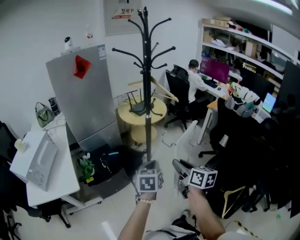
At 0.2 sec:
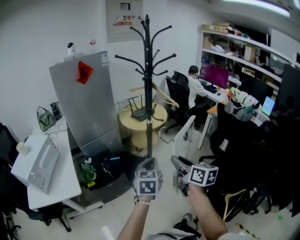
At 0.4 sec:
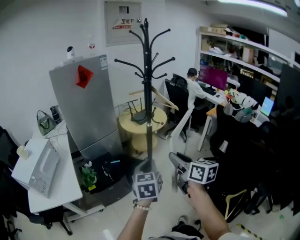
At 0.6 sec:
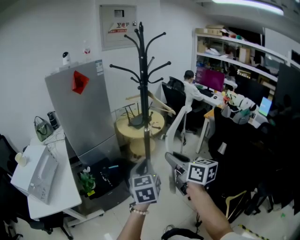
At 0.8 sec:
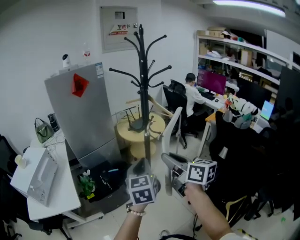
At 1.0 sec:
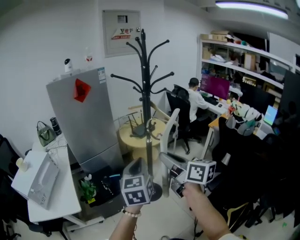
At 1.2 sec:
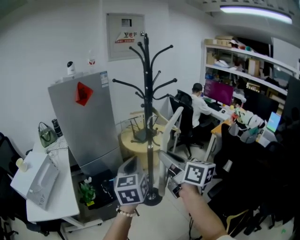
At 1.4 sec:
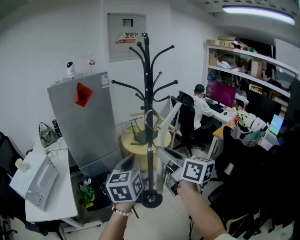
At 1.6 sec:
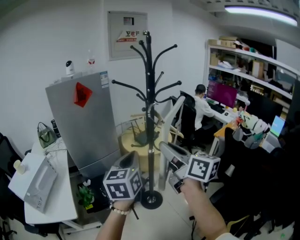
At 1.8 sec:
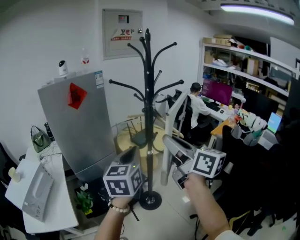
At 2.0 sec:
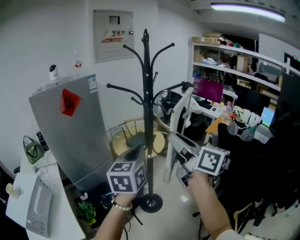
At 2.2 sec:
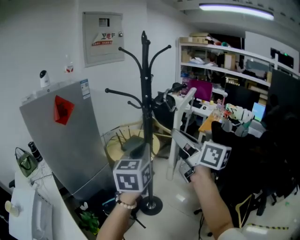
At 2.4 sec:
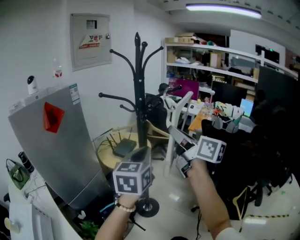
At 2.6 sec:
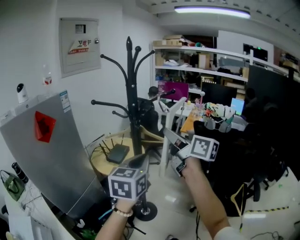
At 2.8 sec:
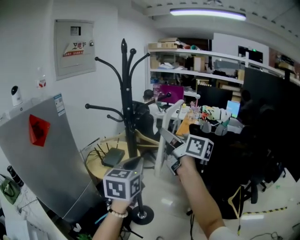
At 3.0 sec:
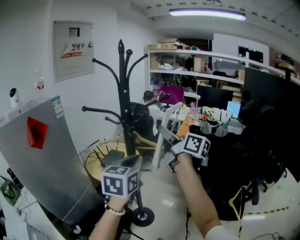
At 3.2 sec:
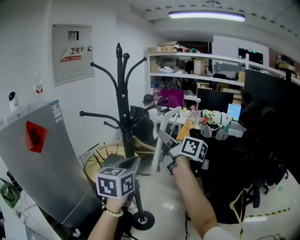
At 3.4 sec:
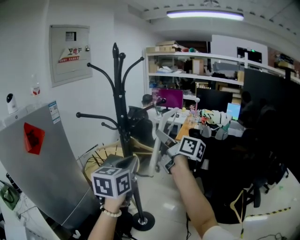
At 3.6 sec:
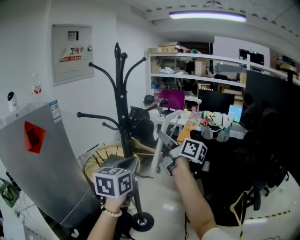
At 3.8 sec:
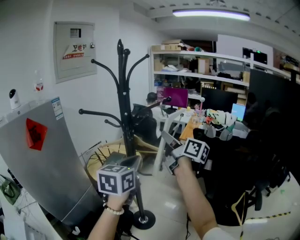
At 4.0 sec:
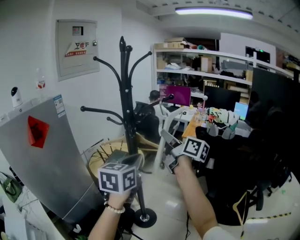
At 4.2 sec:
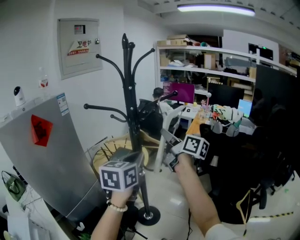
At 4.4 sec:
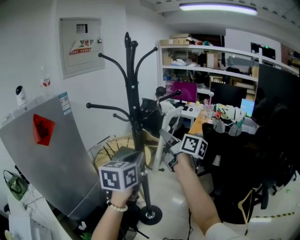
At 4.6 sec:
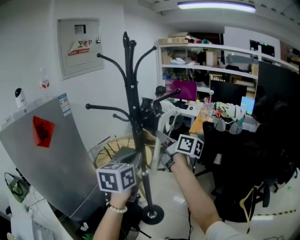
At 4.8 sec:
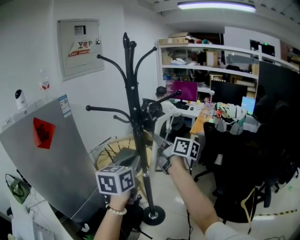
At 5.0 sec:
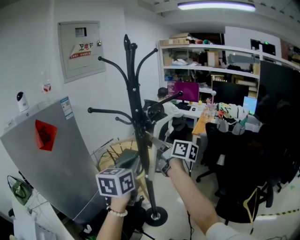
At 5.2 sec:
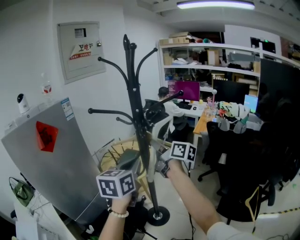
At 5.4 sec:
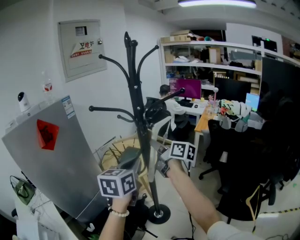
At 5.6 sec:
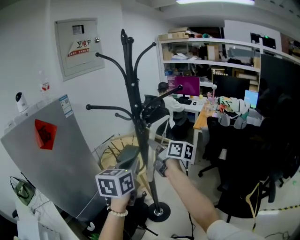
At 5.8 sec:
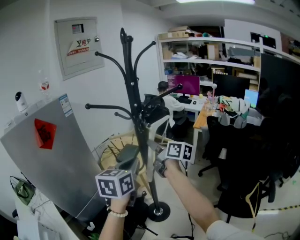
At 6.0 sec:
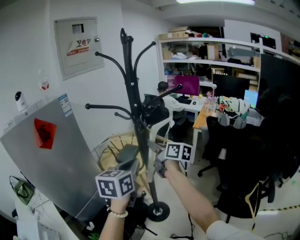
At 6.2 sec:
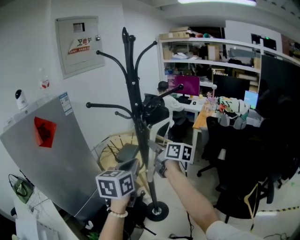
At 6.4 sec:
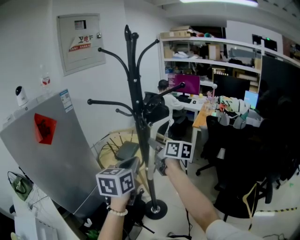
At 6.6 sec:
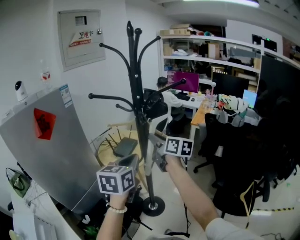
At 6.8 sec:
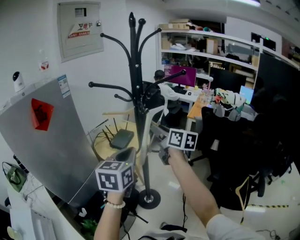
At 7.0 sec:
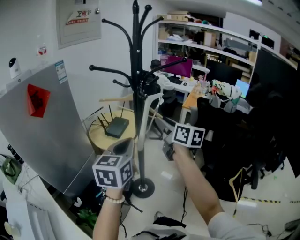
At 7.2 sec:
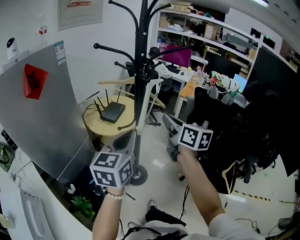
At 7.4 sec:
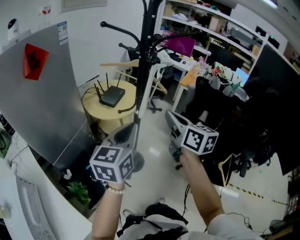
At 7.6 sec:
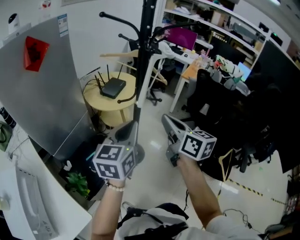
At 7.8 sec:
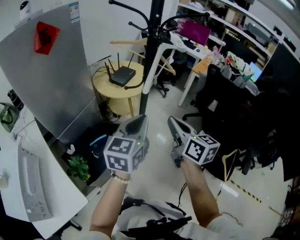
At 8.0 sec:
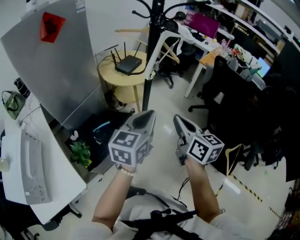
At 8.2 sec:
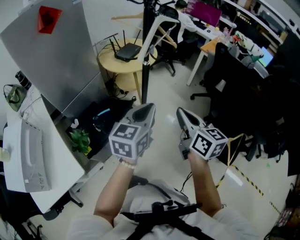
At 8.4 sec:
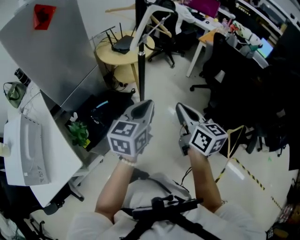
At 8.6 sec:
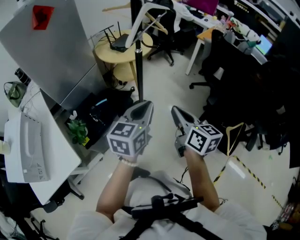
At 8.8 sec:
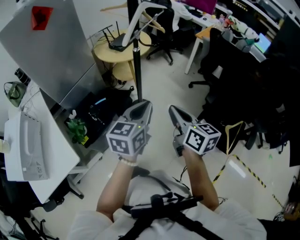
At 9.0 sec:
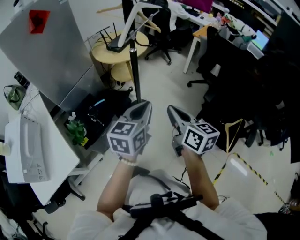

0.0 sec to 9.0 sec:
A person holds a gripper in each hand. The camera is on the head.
0.0 sec to 1.6 sec: Both grippers move upward and forward, some 30 cm. The right gripper rotates some 30 degrees. Meanwhile the left gripper rotates about 30 degrees.
1.6 sec to 3.0 sec: The right gripper moves approximately 20 cm, and swivels approximately 30 degrees, while the left gripper changes place by about 15 cm, and rotates approximately 40 degrees.
3.0 sec to 4.4 sec: The right gripper travels forward and downward by approximately 10 cm.
4.4 sec to 6.0 sec: The right gripper moves downward and to the left, about 10 cm. The left gripper changes place by approximately 5 cm.
6.0 sec to 7.6 sec: The right gripper goes approximately 25 cm backward, rotates about 20 degrees, and closes its fingers; the left gripper shifts approximately 15 cm backward and downward.
7.6 sec to 9.0 sec: The right gripper travels backward, to the right and downward by about 25 cm; the left gripper travels to the right, backward and downward by roughly 25 cm.

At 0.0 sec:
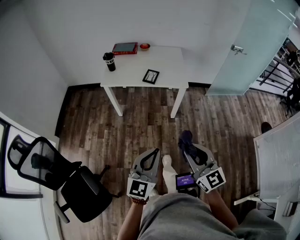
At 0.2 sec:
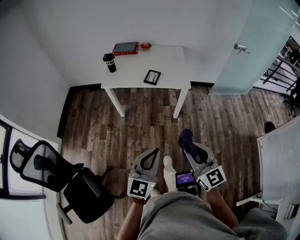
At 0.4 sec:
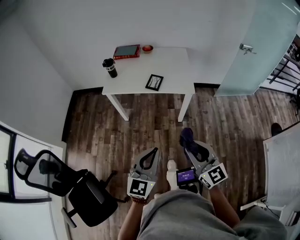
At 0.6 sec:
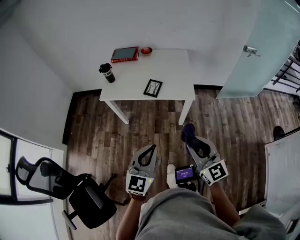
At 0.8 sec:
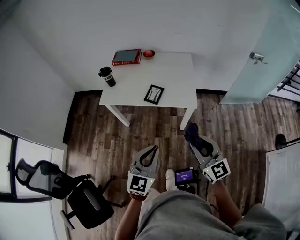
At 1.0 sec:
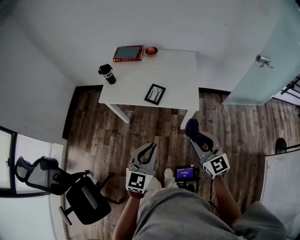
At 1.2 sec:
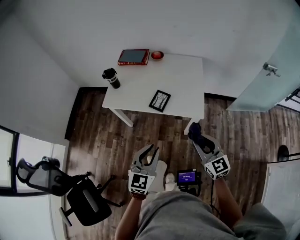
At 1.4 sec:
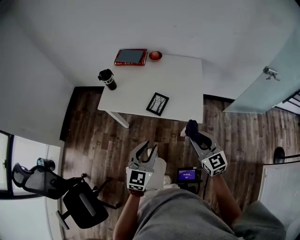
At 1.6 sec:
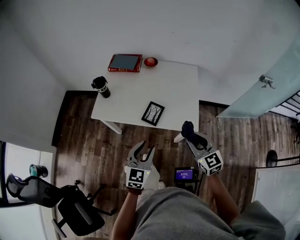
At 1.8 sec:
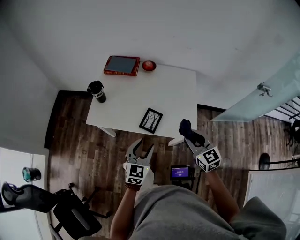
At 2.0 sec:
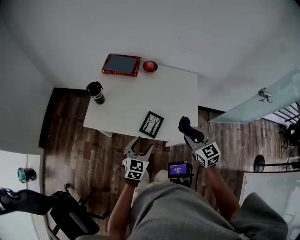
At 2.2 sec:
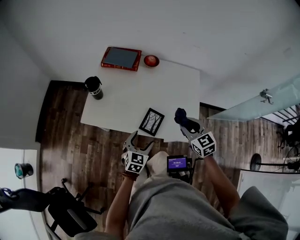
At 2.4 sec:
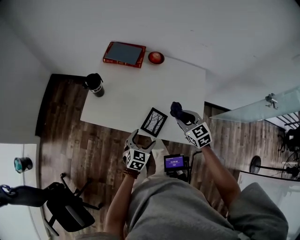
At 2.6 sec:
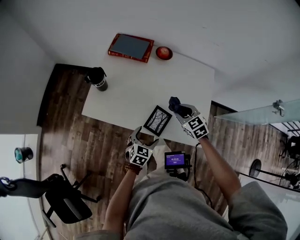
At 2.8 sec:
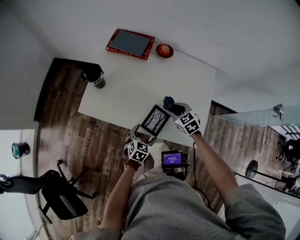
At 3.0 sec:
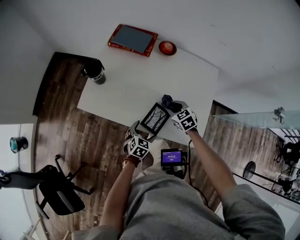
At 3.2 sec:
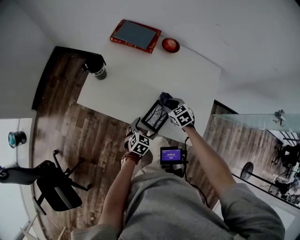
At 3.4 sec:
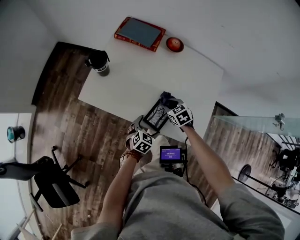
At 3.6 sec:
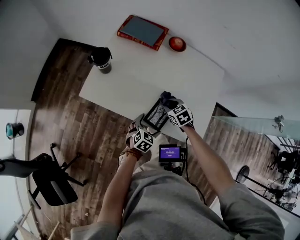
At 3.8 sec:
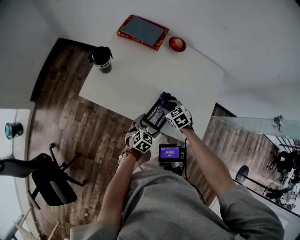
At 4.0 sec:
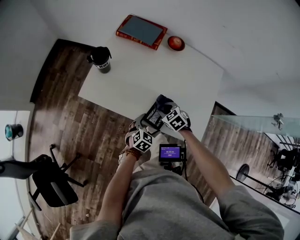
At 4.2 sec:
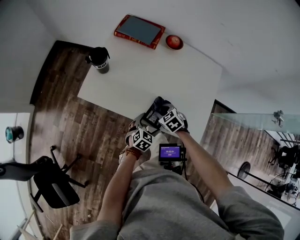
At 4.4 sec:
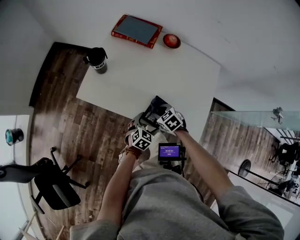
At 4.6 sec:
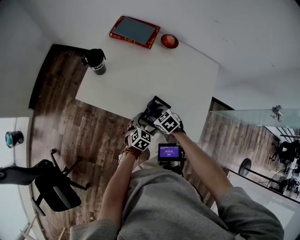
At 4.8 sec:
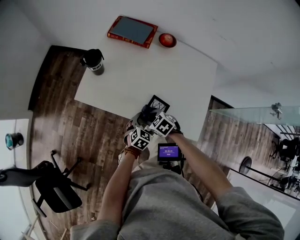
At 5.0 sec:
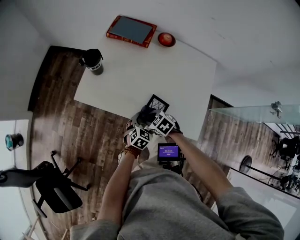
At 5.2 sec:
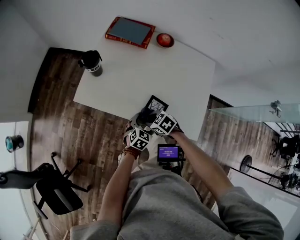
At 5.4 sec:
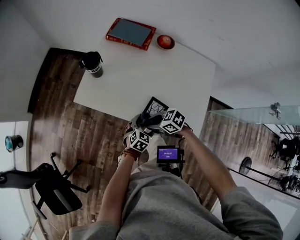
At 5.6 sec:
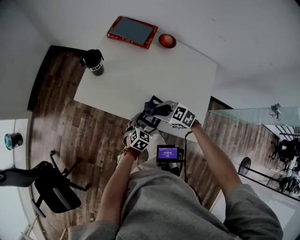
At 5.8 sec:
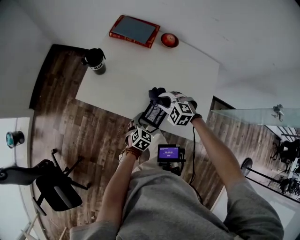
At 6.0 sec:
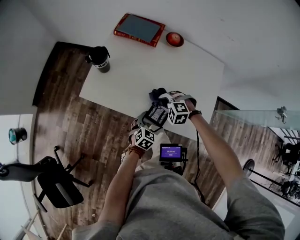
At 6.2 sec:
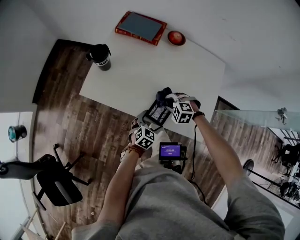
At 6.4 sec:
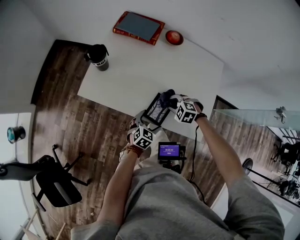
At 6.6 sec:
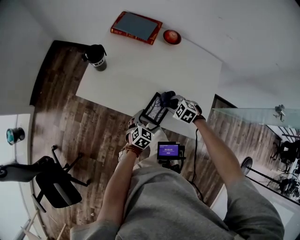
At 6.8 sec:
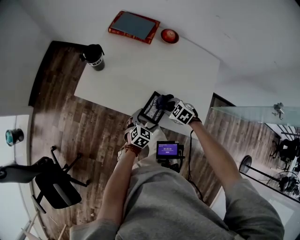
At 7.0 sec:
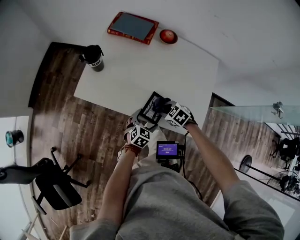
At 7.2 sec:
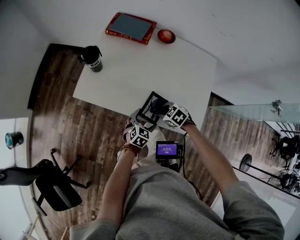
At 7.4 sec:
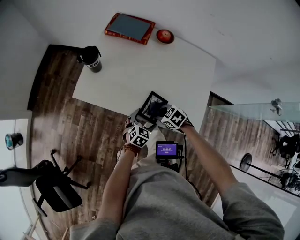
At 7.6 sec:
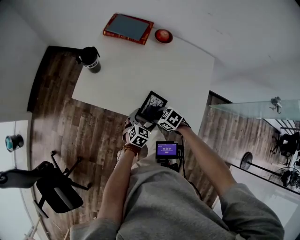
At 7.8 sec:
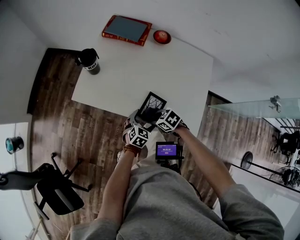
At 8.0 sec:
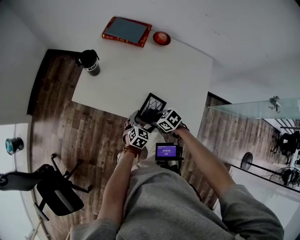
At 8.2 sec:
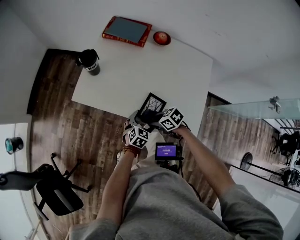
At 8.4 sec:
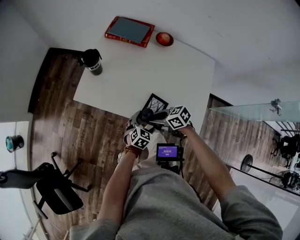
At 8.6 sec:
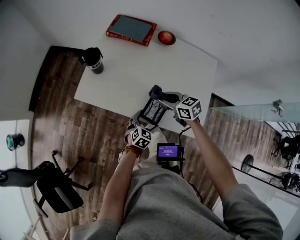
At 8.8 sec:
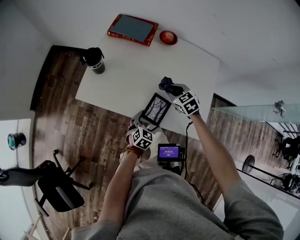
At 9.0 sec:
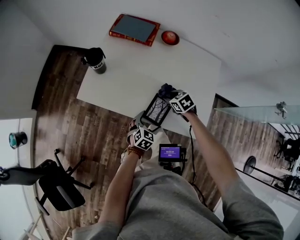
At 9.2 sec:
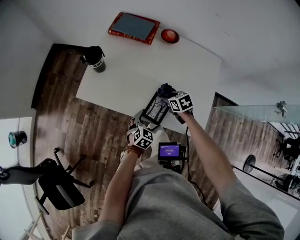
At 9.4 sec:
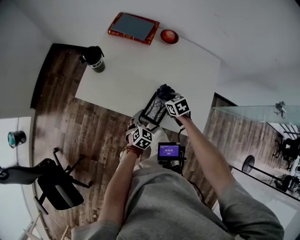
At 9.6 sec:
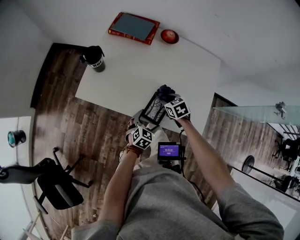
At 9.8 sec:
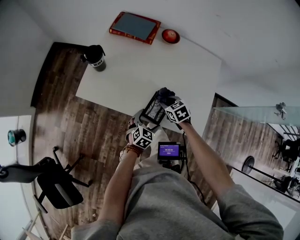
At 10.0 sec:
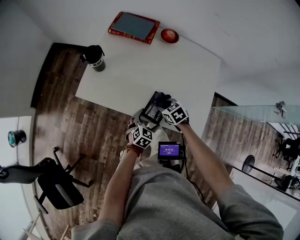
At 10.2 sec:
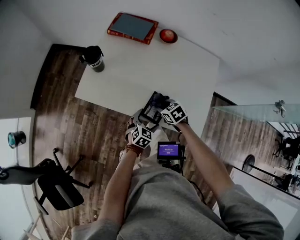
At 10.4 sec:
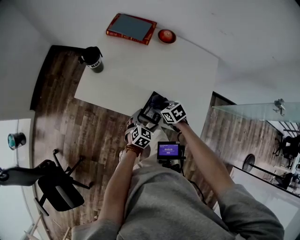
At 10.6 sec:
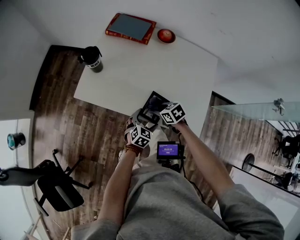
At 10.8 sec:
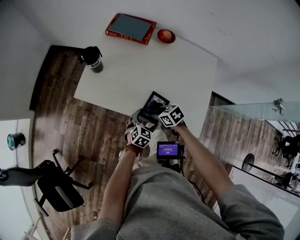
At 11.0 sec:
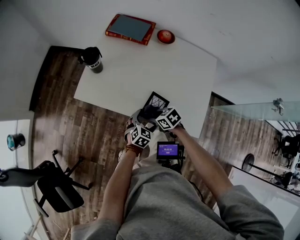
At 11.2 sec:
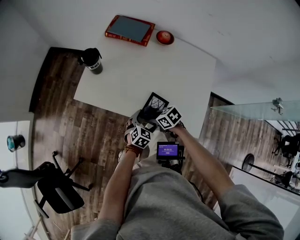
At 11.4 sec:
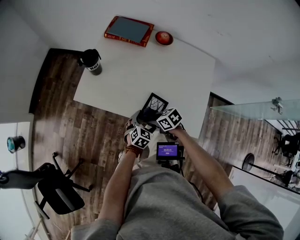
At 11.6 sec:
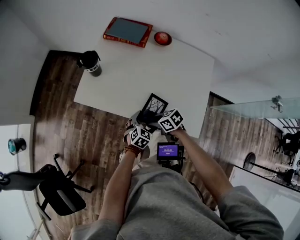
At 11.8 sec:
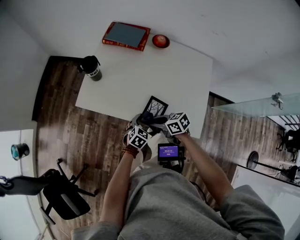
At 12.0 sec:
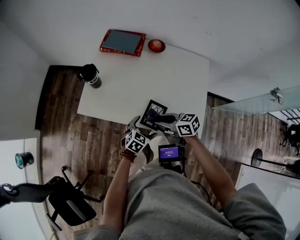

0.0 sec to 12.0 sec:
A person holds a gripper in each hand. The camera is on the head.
0.0 sec to 1.6 sec: Both grippers are carried forward, roughly 50 cm. The left gripper turns by roughly 20 degrees.
1.6 sec to 3.0 sec: The left gripper heads downward and forward, covering roughly 35 cm, rotates about 30 degrees, and opens up. The right gripper is displaced forward and downward by about 40 cm, and points its fingers some 30 degrees further downward.
3.0 sec to 4.4 sec: The right gripper shifts some 10 cm to the left and backward.
4.4 sec to 6.0 sec: The right gripper travels upward and back again, about 10 cm each way, and twists approximately 50 degrees counterclockwise, seen from behind.
6.0 sec to 7.6 sec: The right gripper moves about 10 cm, and rolls clockwise, seen from behind, by approximately 50 degrees.
7.6 sec to 9.0 sec: The right gripper travels upward and back again, some 10 cm each way, and turns by approximately 20 degrees.
9.0 sec to 10.4 sec: The right gripper goes about 5 cm backward.
10.4 sec to 12.0 sec: The right gripper goes approximately 10 cm upward, and rotates roughly 30 degrees.

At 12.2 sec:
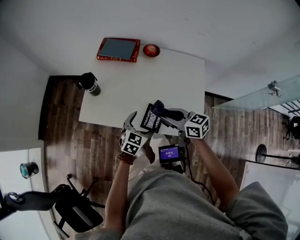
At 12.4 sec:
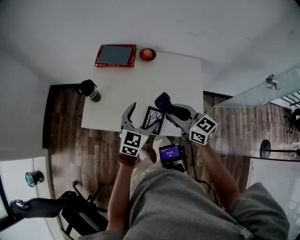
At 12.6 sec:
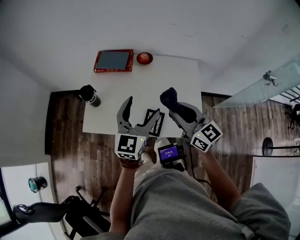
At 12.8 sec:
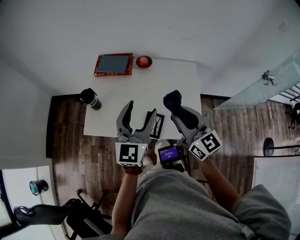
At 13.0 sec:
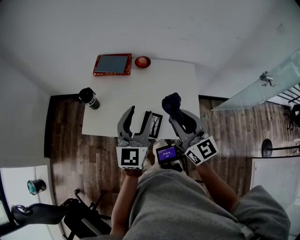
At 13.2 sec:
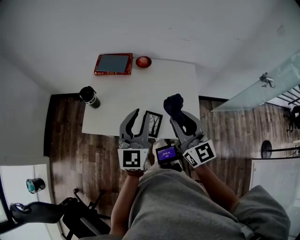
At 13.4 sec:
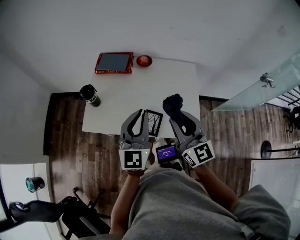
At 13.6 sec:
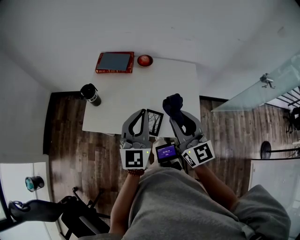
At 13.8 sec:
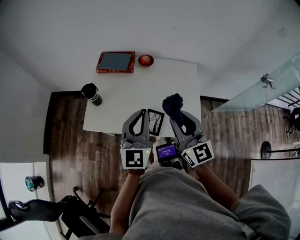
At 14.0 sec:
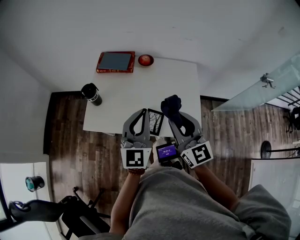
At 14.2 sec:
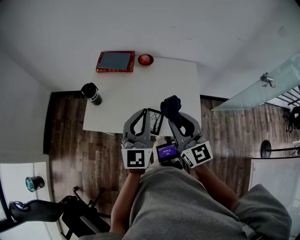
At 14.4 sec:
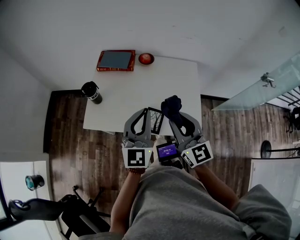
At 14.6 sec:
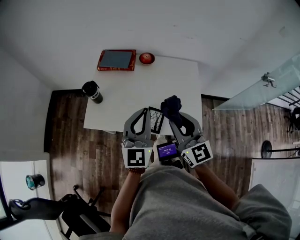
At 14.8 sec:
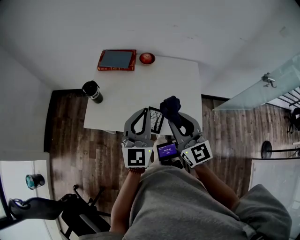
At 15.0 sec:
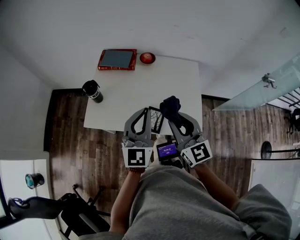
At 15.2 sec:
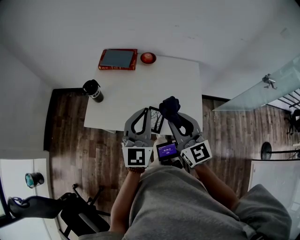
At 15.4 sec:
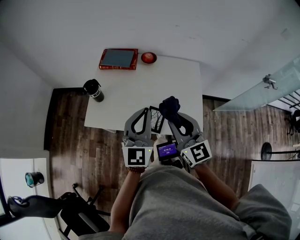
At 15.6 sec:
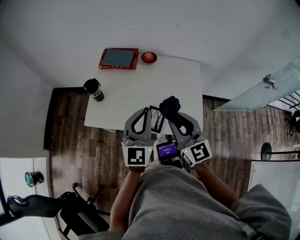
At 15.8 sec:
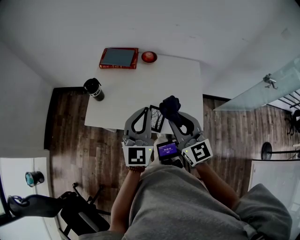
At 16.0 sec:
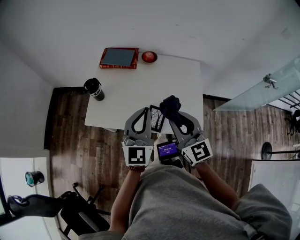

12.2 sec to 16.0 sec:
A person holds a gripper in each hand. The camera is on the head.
12.2 sec to 13.4 sec: The right gripper travels upward by roughly 20 cm, and swivels approximately 50 degrees. Meanwhile the left gripper moves upward, some 25 cm, tilts its fingers about 40 degrees upward, and closes.
13.4 sec to 14.8 sec: There are only small adjustments of the grippers.
14.8 sec to 16.0 sec: Both grippers stay put.
